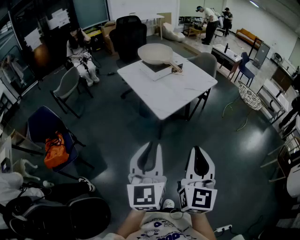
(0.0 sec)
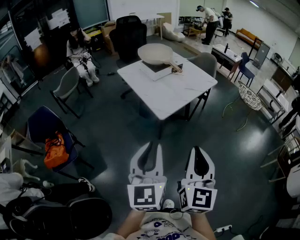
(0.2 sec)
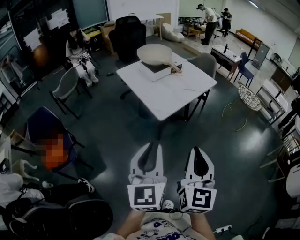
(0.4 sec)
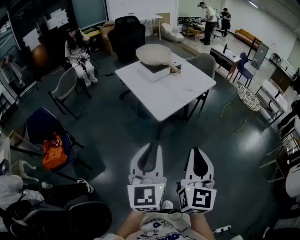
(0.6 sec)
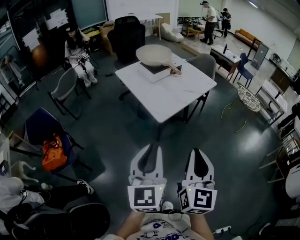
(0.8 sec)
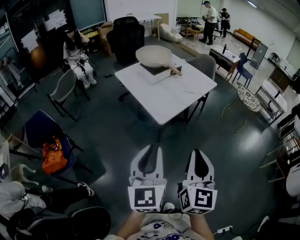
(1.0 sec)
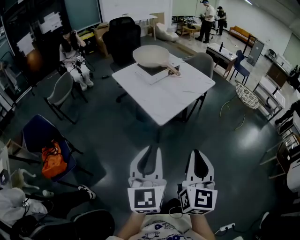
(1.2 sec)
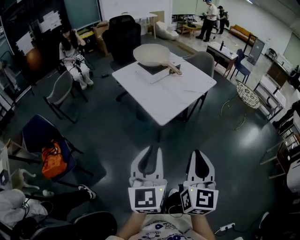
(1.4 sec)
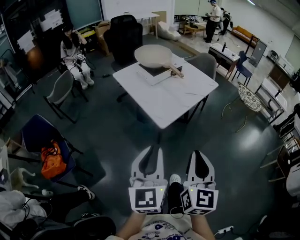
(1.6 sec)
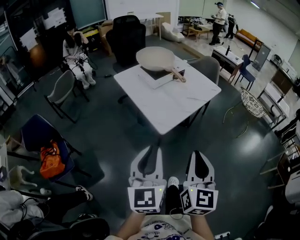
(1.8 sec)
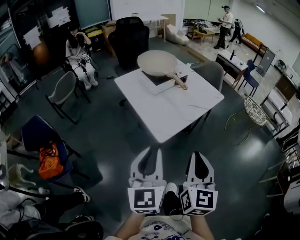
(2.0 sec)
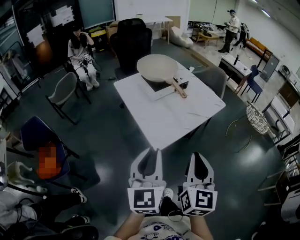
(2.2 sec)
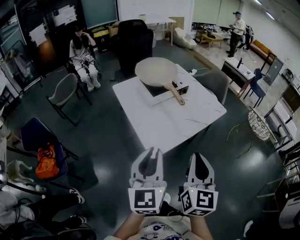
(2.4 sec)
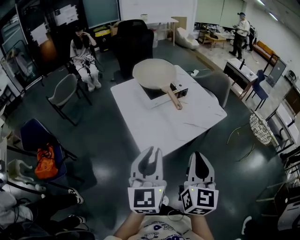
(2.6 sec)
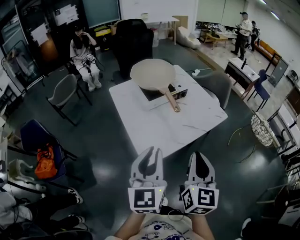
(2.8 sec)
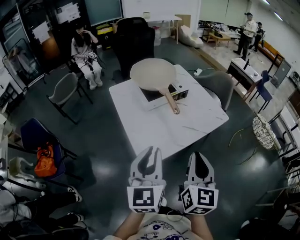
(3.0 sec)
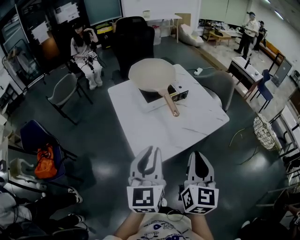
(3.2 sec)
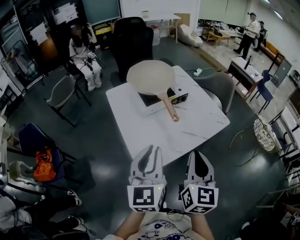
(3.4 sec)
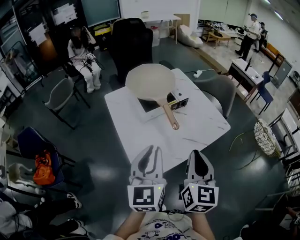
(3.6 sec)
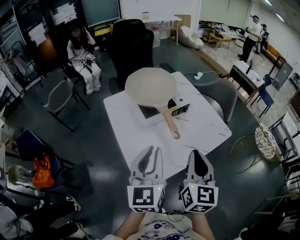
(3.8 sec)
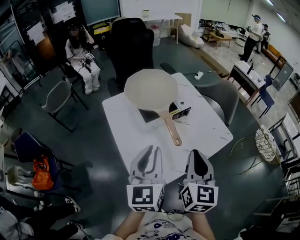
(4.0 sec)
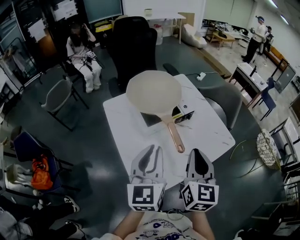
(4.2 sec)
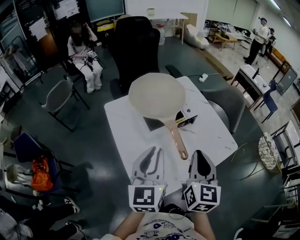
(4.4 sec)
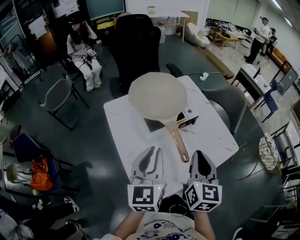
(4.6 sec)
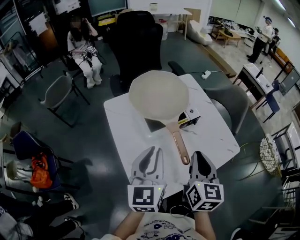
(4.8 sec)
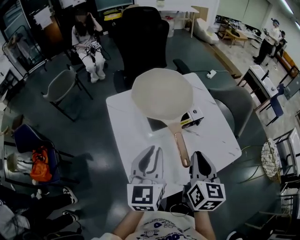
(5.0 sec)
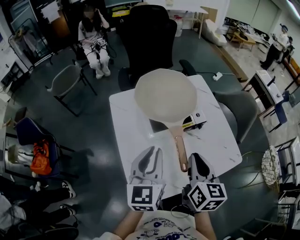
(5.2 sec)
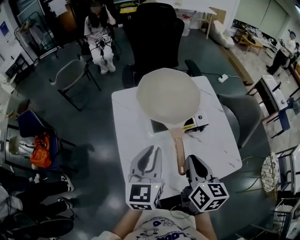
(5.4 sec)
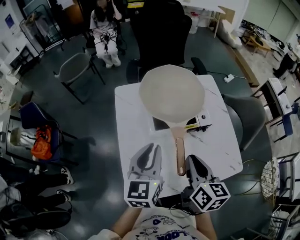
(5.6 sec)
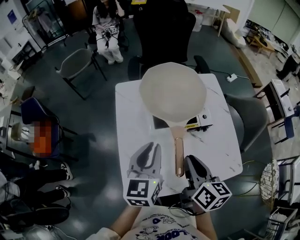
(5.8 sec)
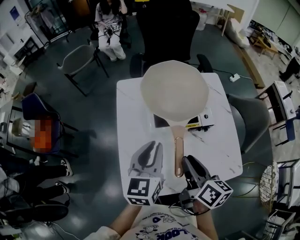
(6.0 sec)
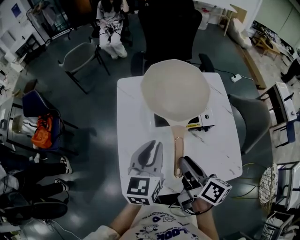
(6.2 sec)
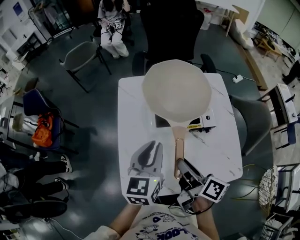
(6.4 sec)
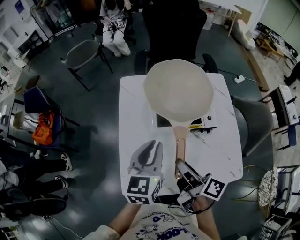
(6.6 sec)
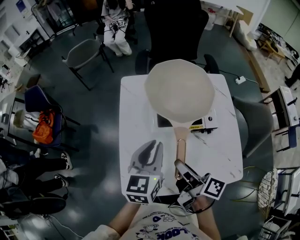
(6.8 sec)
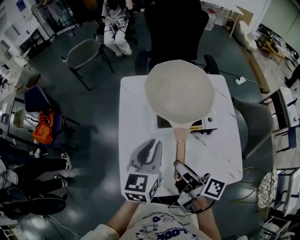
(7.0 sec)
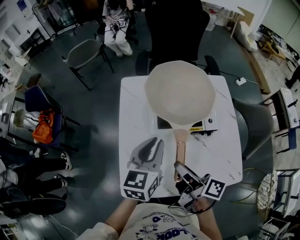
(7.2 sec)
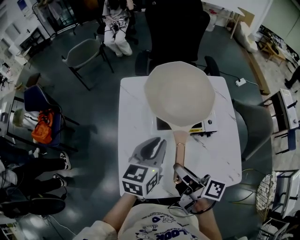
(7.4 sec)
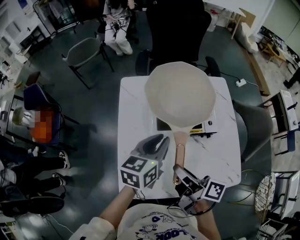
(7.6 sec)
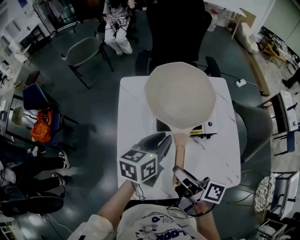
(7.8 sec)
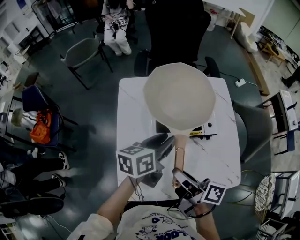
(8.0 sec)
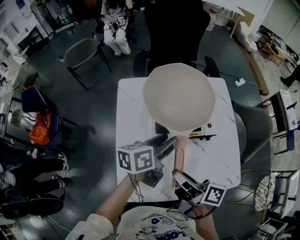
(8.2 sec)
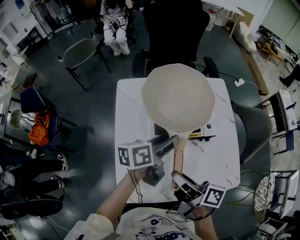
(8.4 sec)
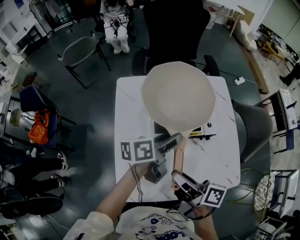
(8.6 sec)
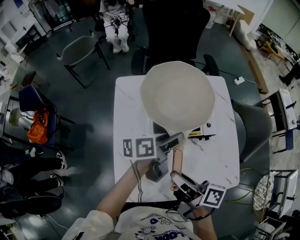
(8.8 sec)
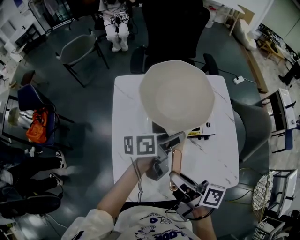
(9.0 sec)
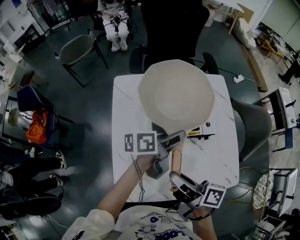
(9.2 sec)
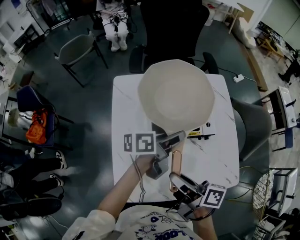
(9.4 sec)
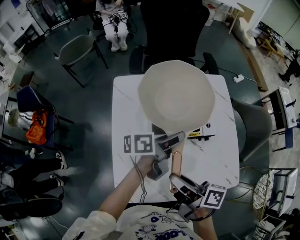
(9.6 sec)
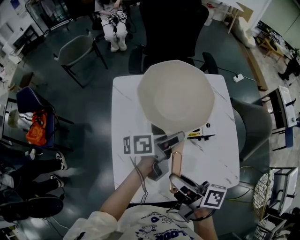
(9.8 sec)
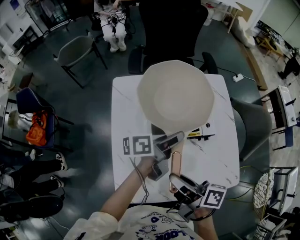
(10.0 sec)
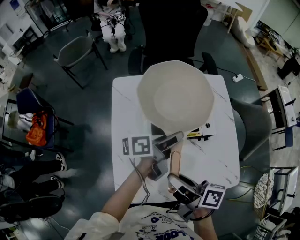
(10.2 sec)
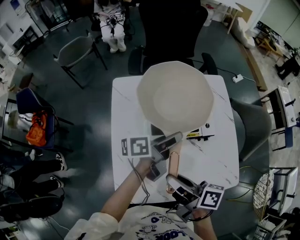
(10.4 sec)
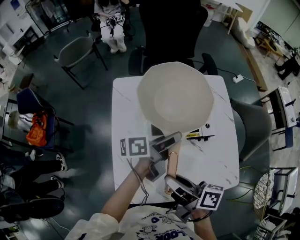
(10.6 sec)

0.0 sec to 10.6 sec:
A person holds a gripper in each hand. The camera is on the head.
0.0 sec to 1.6 sec: The two grippers go roughly 5 cm forward.
1.6 sec to 3.0 sec: The two grippers go roughly 30 cm forward and to the right.
3.0 sec to 4.6 sec: The grippers both shift forward by roughly 25 cm.
4.6 sec to 6.0 sec: The two grippers go some 5 cm downward. The right gripper rotates approximately 50 degrees, and opens.
6.0 sec to 7.6 sec: The right gripper turns by about 30 degrees; the left gripper ends up approximately 5 cm from where it was.
7.6 sec to 9.0 sec: The left gripper goes some 5 cm to the right, turns by approximately 40 degrees, and opens up.
9.0 sec to 10.6 sec: The grippers make only small movements.

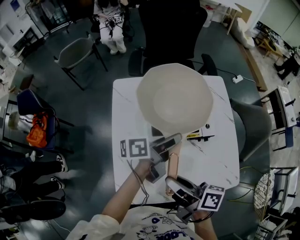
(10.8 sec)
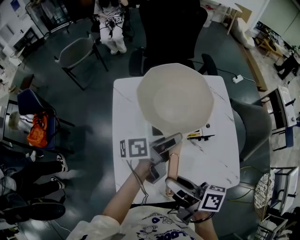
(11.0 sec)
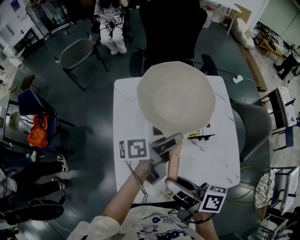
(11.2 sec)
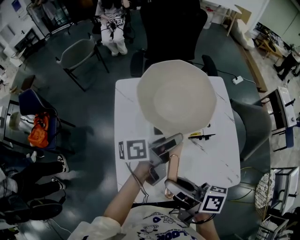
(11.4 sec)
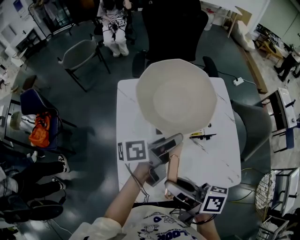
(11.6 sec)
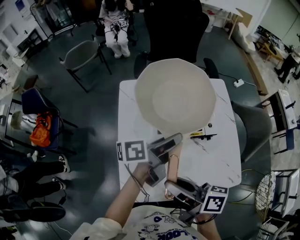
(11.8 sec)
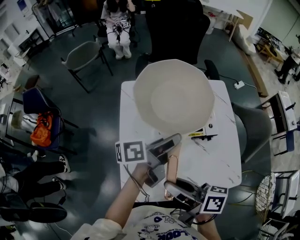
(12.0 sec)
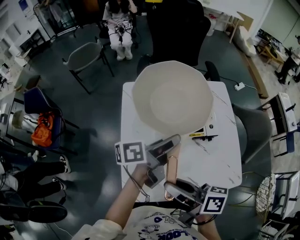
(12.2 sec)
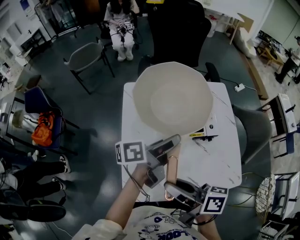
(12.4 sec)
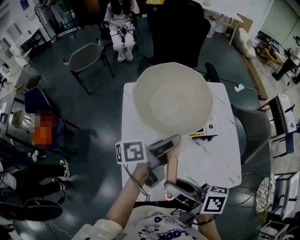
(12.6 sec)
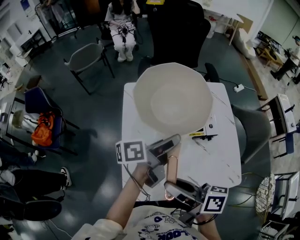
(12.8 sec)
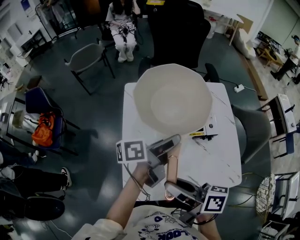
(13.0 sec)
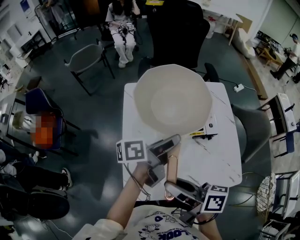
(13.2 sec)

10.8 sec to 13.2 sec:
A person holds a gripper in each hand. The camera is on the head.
10.8 sec to 12.0 sec: The right gripper shifts by approximately 5 cm. The left gripper heads upward, covering approximately 5 cm.
12.0 sec to 13.2 sec: The grippers move only a little.

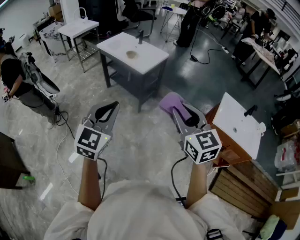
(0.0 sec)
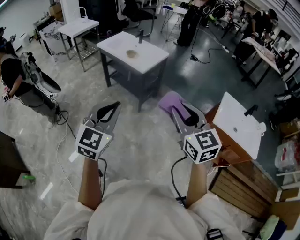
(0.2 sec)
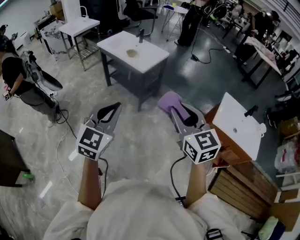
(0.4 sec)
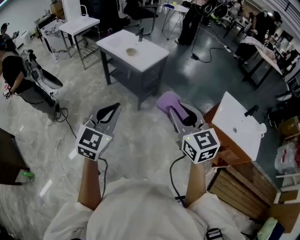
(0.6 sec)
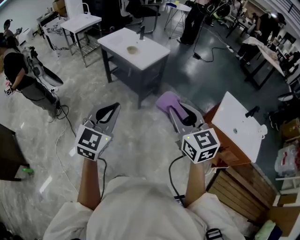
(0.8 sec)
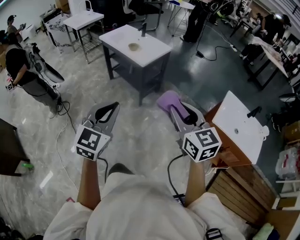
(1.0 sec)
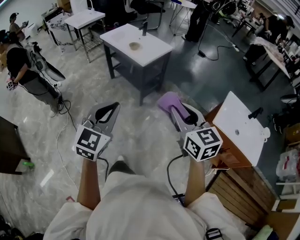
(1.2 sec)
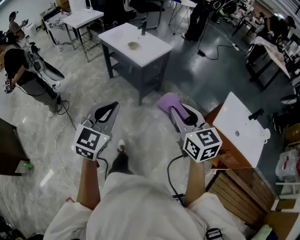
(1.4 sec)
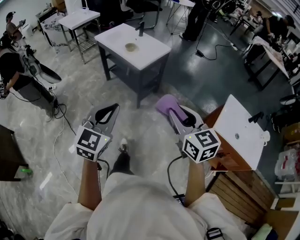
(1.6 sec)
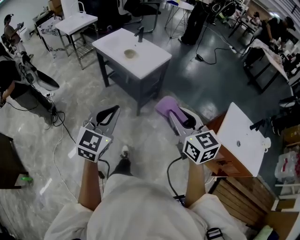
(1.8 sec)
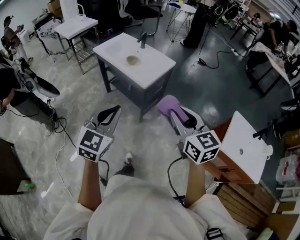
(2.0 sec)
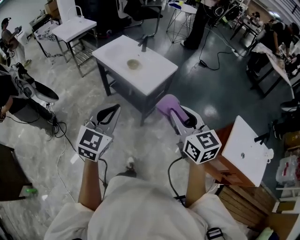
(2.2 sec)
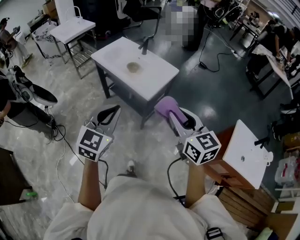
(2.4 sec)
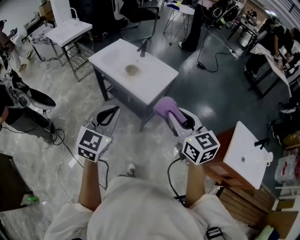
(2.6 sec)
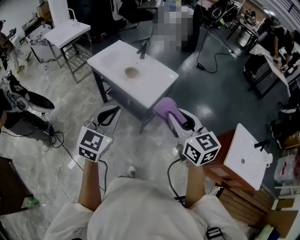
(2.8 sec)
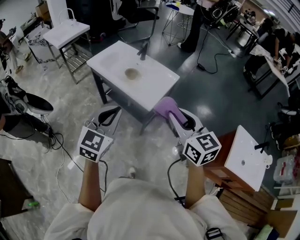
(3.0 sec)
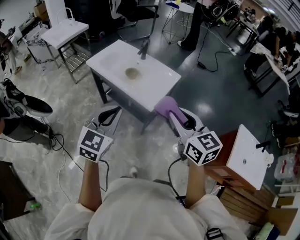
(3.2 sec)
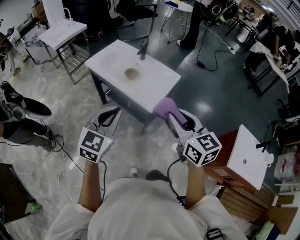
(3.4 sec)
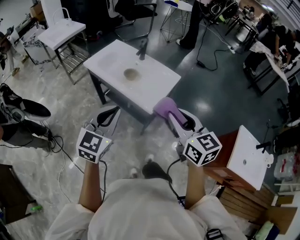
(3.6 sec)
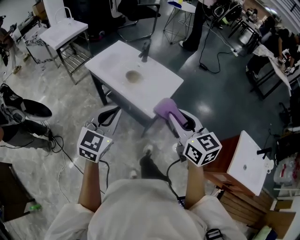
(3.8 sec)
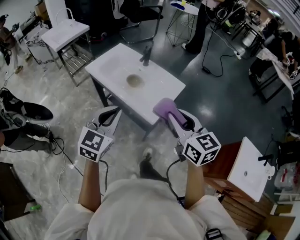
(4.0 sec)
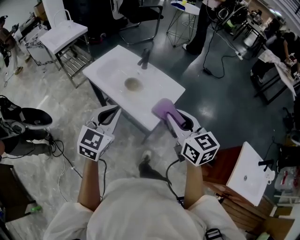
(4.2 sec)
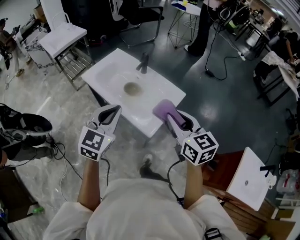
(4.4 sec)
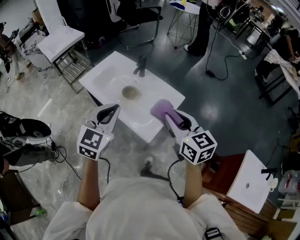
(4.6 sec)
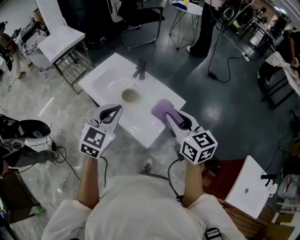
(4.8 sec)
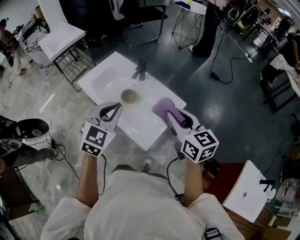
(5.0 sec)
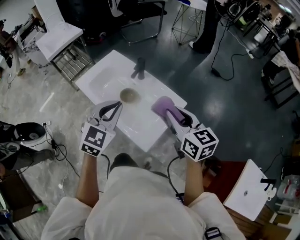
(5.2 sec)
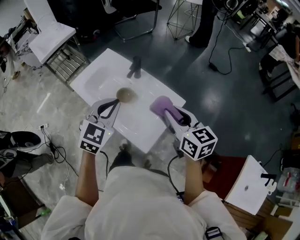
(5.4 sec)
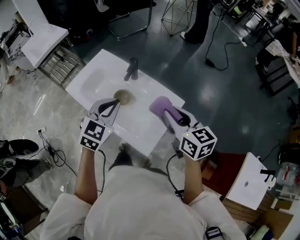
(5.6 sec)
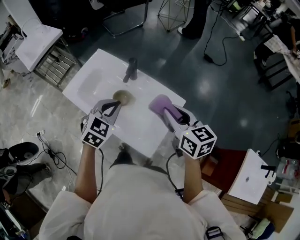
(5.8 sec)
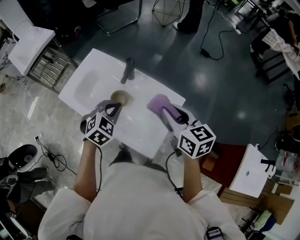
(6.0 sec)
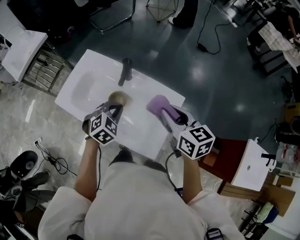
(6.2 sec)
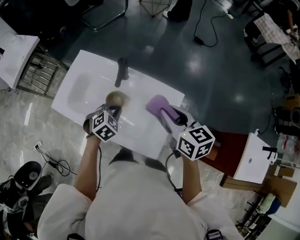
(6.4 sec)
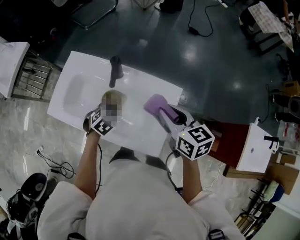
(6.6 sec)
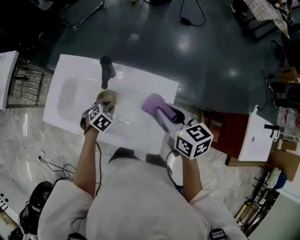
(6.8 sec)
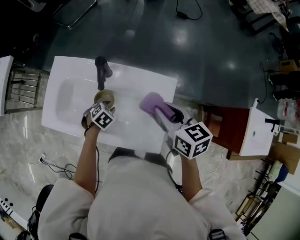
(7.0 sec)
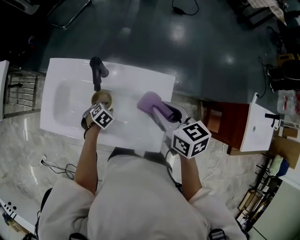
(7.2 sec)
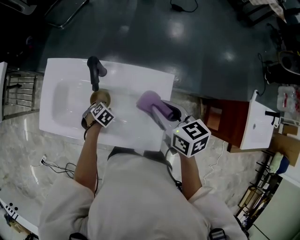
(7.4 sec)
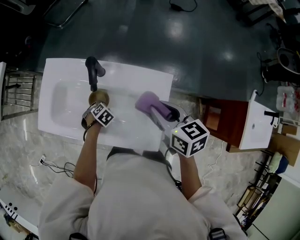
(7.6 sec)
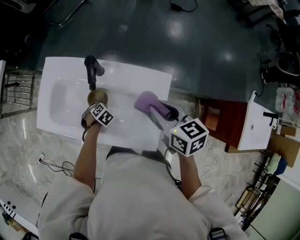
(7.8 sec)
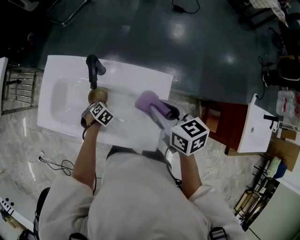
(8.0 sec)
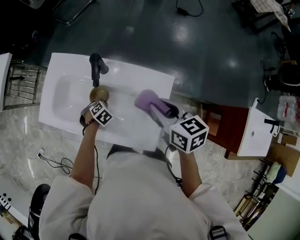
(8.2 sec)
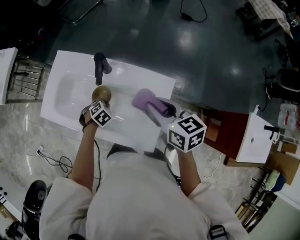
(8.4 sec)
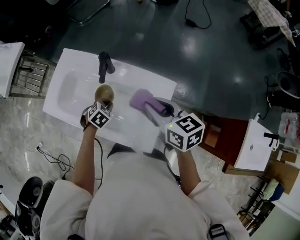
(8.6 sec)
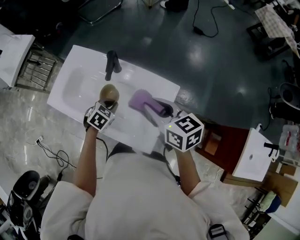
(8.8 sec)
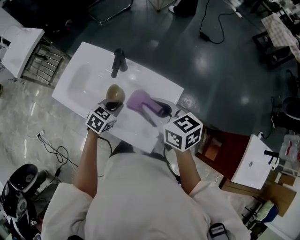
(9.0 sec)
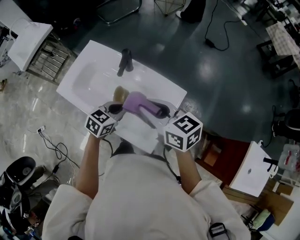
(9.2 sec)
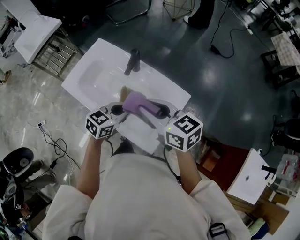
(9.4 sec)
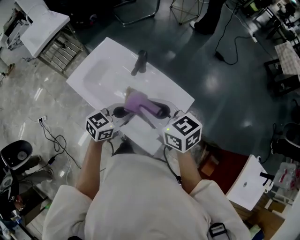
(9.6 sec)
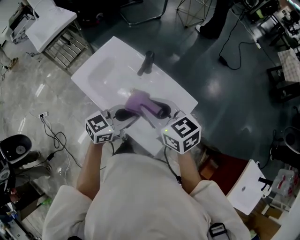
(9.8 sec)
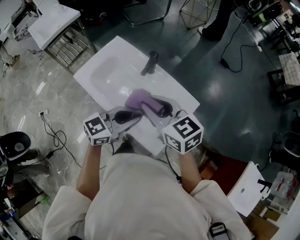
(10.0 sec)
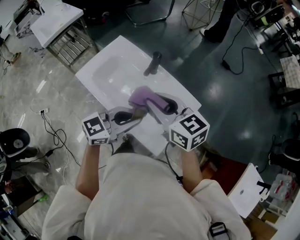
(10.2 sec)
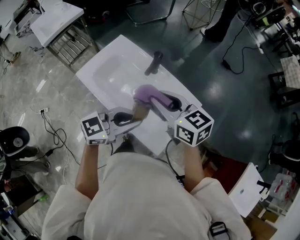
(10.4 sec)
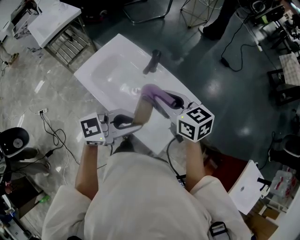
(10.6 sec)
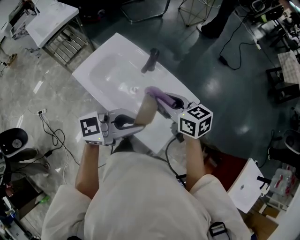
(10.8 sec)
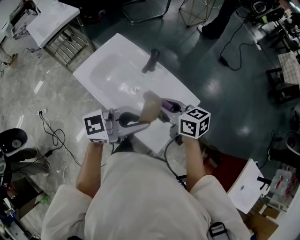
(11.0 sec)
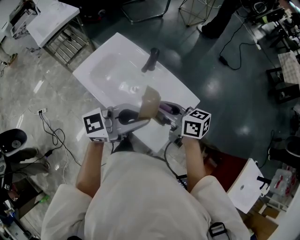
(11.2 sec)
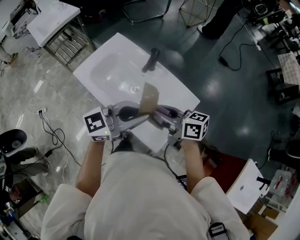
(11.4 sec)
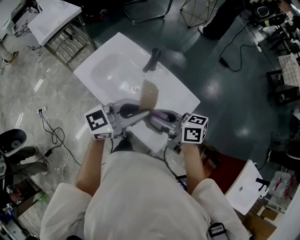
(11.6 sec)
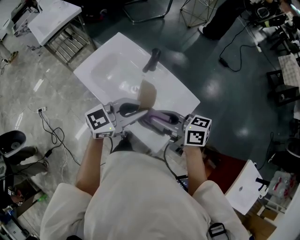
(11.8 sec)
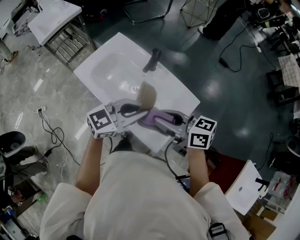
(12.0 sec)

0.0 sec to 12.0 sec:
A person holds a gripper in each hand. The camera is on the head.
0.0 sec to 1.6 sec: The right gripper goes approximately 10 cm forward, downward and to the right. Meanwhile the left gripper heads forward, to the right and downward, covering approximately 10 cm.
1.6 sec to 3.0 sec: The right gripper travels forward and to the left by roughly 40 cm. Meanwhile the left gripper shifts some 35 cm forward.
3.0 sec to 4.4 sec: Both grippers move forward, approximately 25 cm.
4.4 sec to 6.0 sec: The right gripper shifts approximately 25 cm forward. The left gripper travels forward and downward by some 30 cm, and swivels about 30 degrees.
6.0 sec to 7.6 sec: The right gripper moves downward, about 10 cm, and changes its angle by about 20 degrees. The left gripper moves downward, approximately 30 cm, tilts its fingers approximately 40 degrees downward, and opens its fingers.
7.6 sec to 9.0 sec: The right gripper shifts about 5 cm upward, and changes its angle by about 30 degrees. The left gripper moves upward, approximately 20 cm, tips its fingers upward by about 40 degrees, and closes up.
9.0 sec to 10.4 sec: The left gripper shifts about 20 cm upward and backward, and tips its fingers upward by roughly 40 degrees; the right gripper heads to the left and upward, covering some 10 cm.
10.4 sec to 12.0 sec: The right gripper ends up about 5 cm from where it was, and changes its angle by some 30 degrees.
